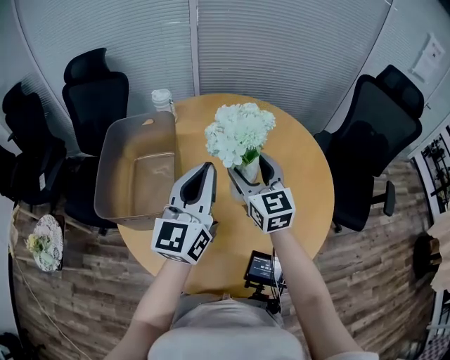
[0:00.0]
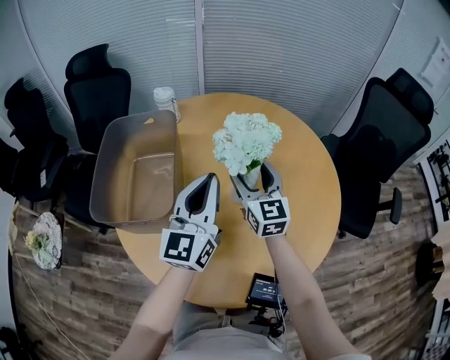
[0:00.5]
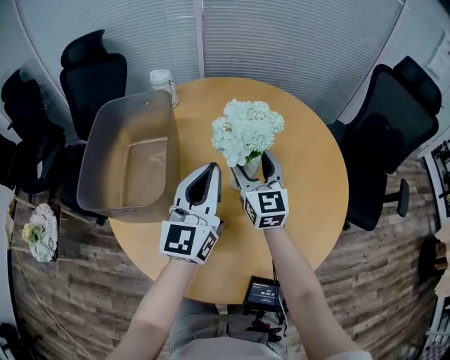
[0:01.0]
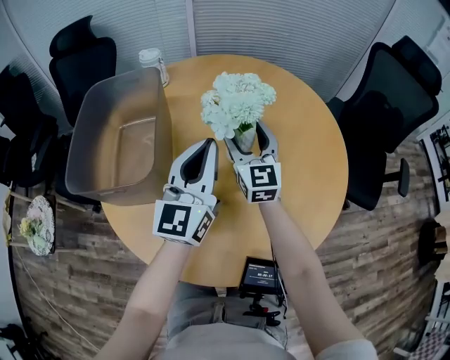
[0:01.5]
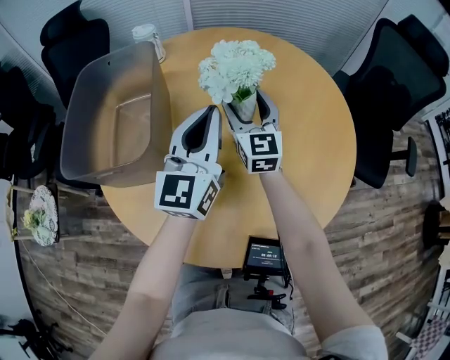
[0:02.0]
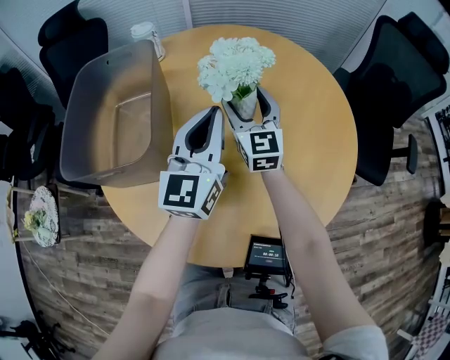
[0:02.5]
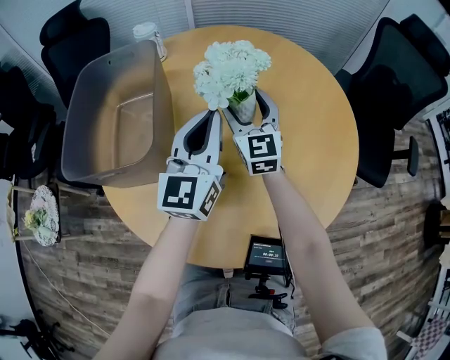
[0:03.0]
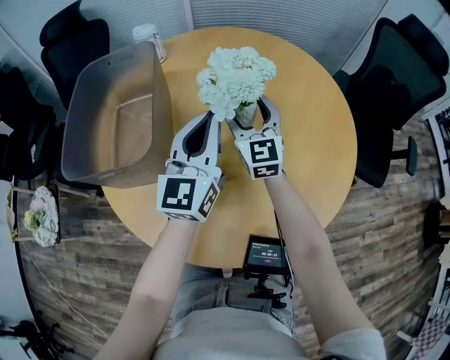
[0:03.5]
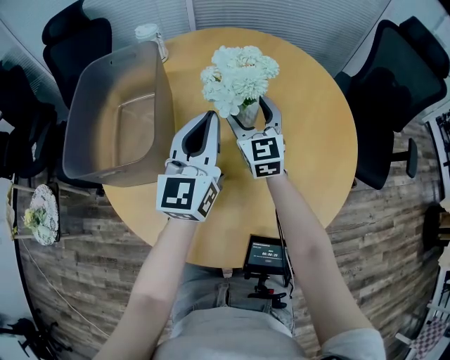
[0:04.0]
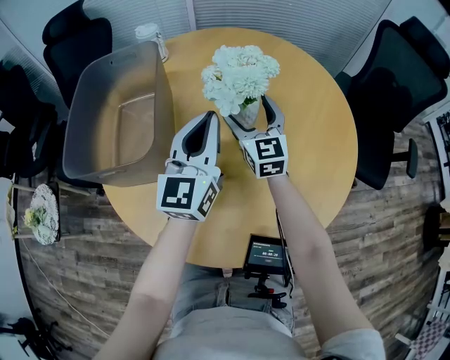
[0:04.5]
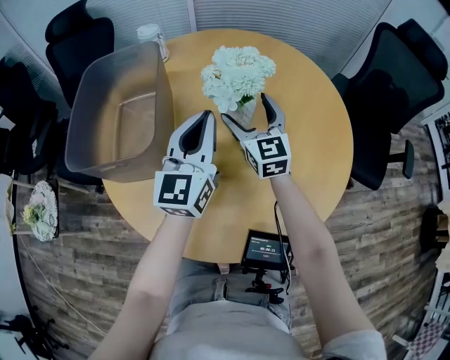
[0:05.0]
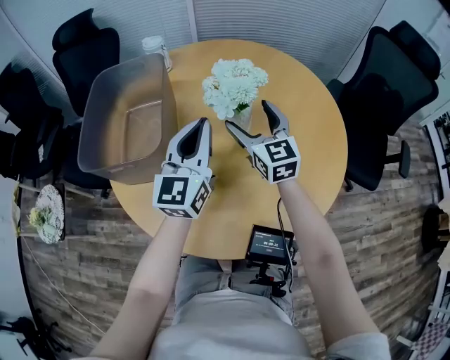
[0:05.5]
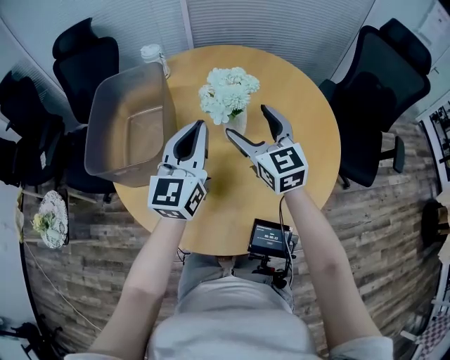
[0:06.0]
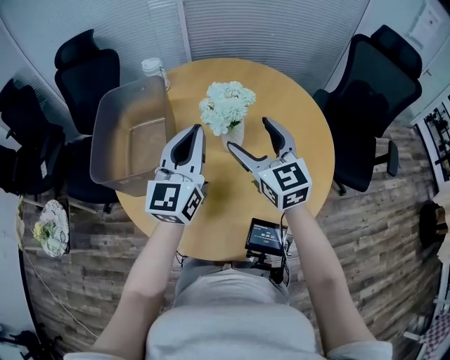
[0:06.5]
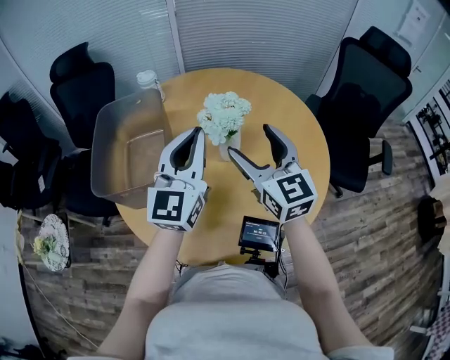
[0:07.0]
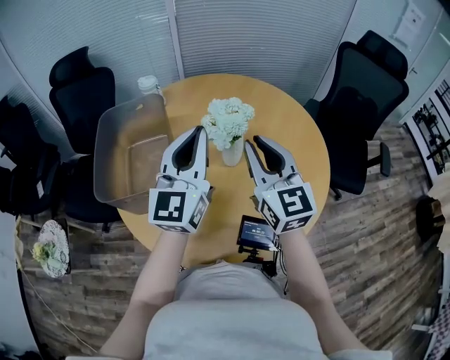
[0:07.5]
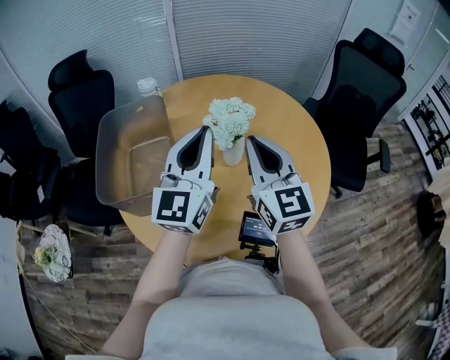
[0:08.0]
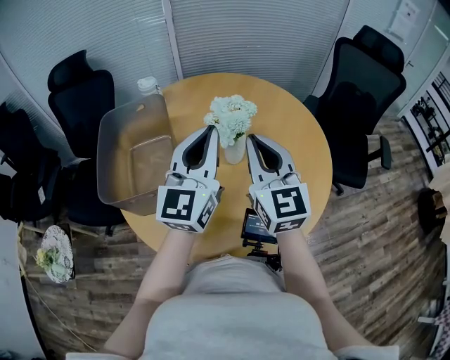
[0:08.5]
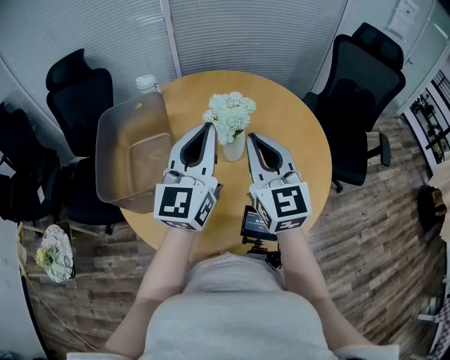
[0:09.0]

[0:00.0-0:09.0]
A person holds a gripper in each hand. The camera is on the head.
0:00.0 to 0:02.0: The right gripper heads downward and forward, covering roughly 10 cm. Meanwhile the left gripper heads downward, covering roughly 10 cm.
0:02.0 to 0:04.5: There are only small adjustments of the grippers.
0:04.5 to 0:07.0: The left gripper goes approximately 15 cm upward; the right gripper is displaced upward and backward by some 25 cm.
0:07.0 to 0:09.0: The right gripper closes up.

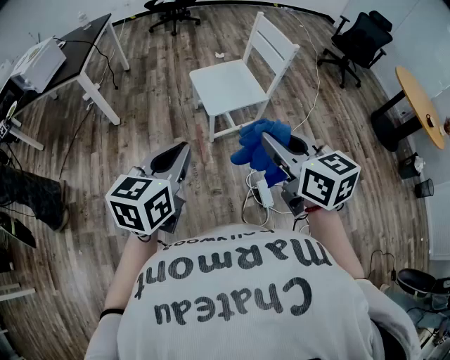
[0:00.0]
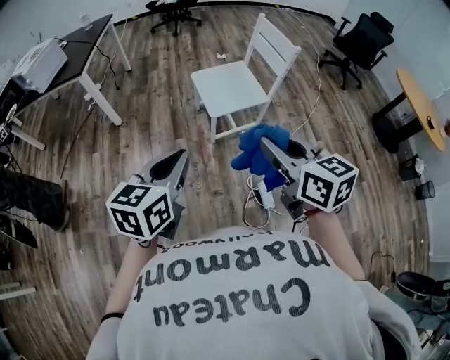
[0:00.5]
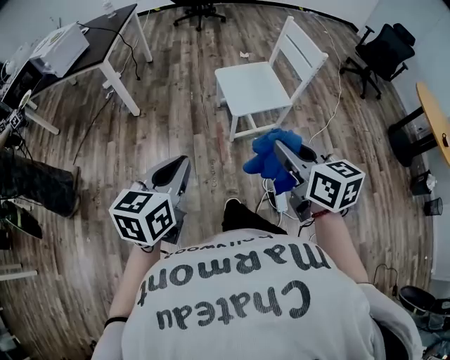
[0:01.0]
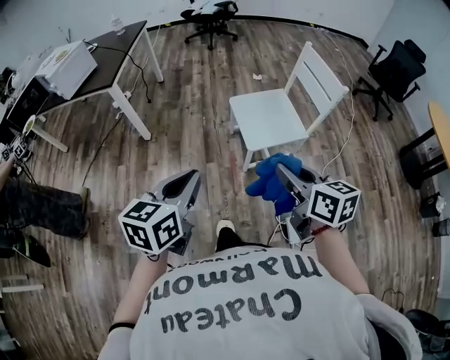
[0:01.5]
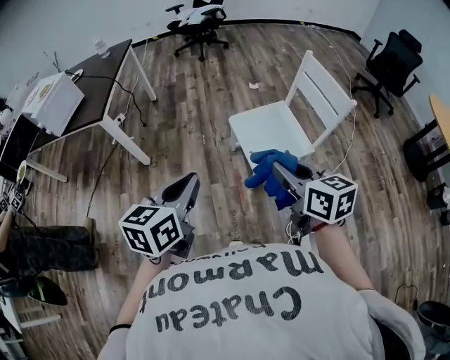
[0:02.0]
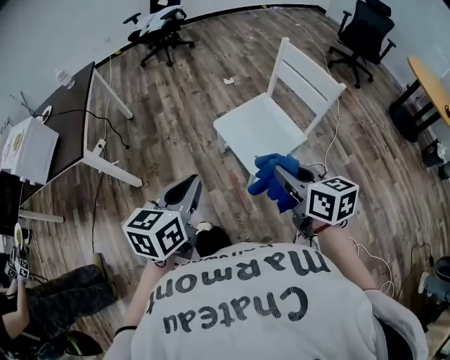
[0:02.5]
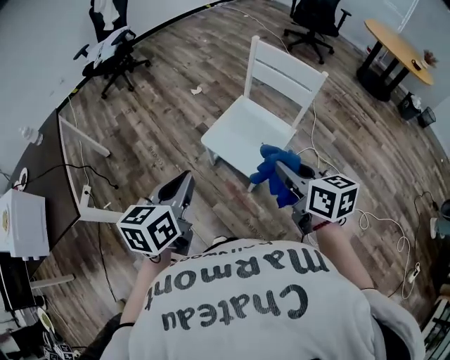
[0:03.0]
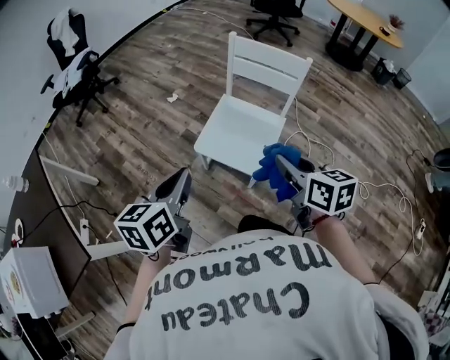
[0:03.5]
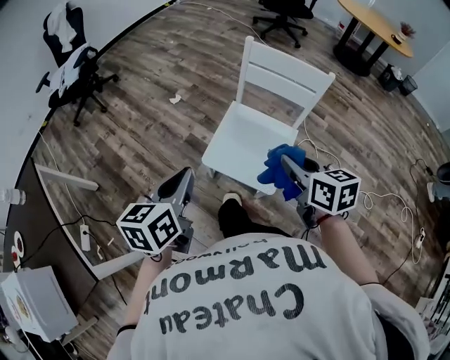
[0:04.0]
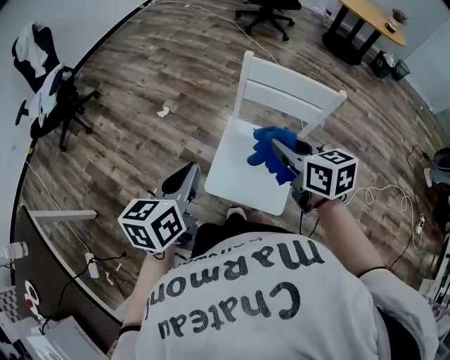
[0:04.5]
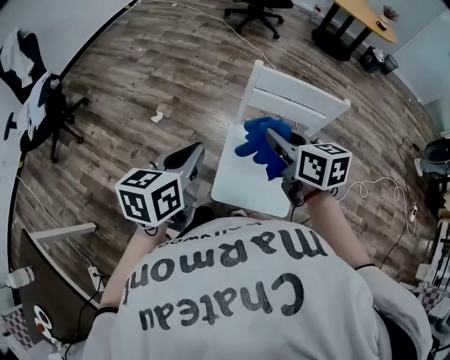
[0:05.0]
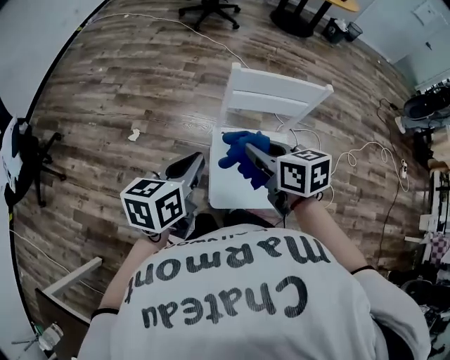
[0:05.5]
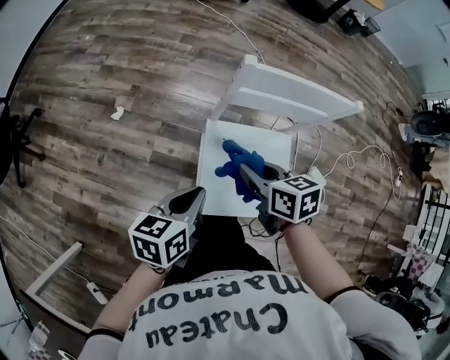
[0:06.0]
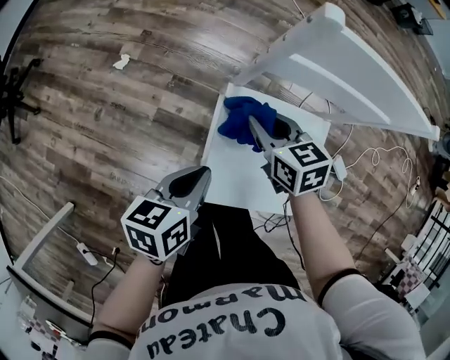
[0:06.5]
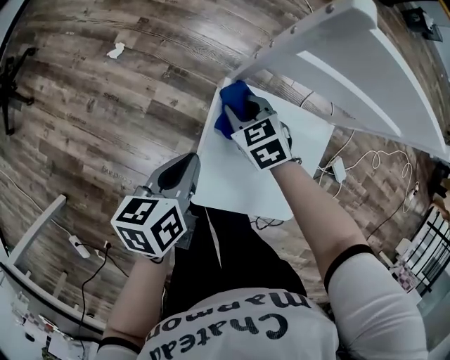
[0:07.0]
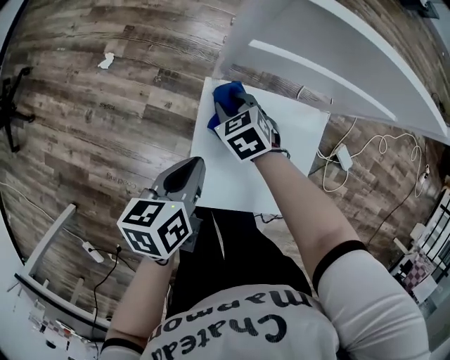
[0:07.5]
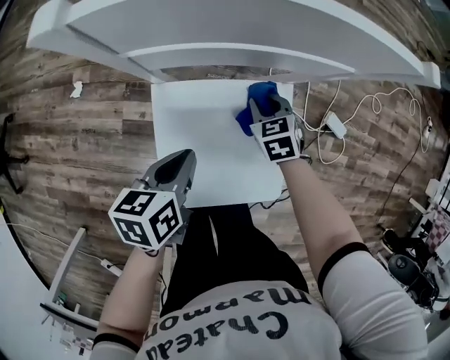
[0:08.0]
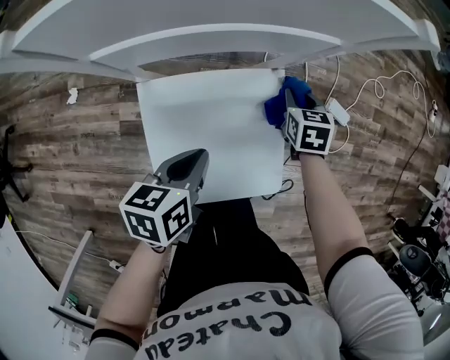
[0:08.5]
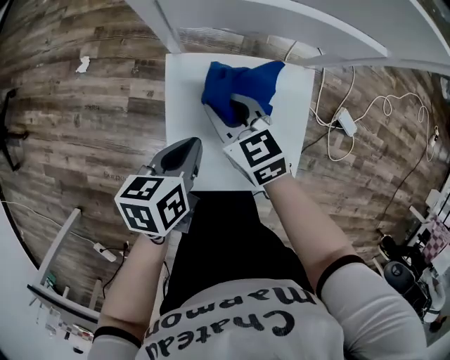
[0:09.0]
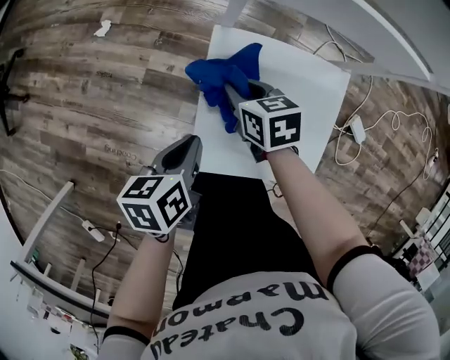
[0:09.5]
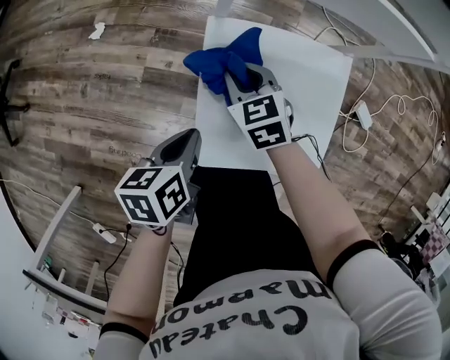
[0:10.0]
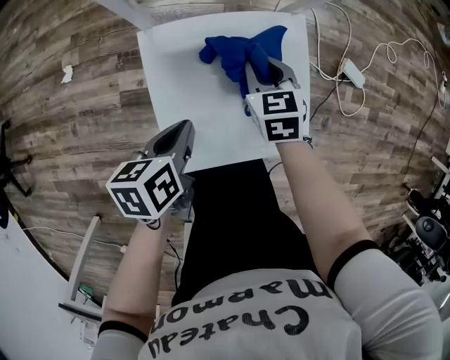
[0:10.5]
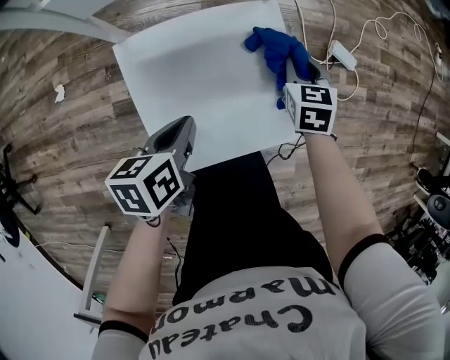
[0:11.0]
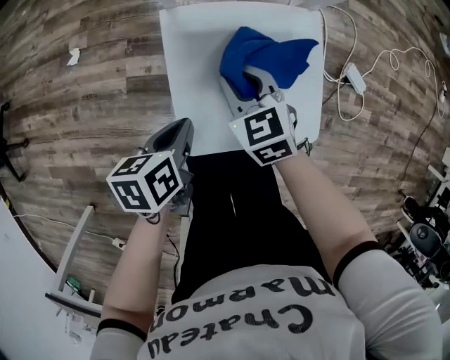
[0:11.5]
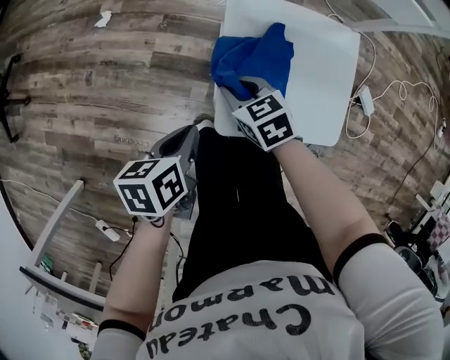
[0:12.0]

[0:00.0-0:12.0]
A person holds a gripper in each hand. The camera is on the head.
0:00.0 to 0:02.0: The left gripper heads forward and to the left, covering about 30 cm. Meanwhile the right gripper heads forward, covering roughly 25 cm.
0:02.0 to 0:04.0: The right gripper changes place by about 25 cm, and changes its angle by approximately 50 degrees; the left gripper ends up about 40 cm from where it was, and swivels about 40 degrees.
0:04.0 to 0:06.0: The right gripper shifts by approximately 30 cm, and swivels roughly 20 degrees; the left gripper shifts by roughly 30 cm, and changes its angle by approximately 40 degrees.
0:06.0 to 0:08.0: The right gripper is displaced downward by some 30 cm, and rotates roughly 30 degrees, while the left gripper heads downward, covering roughly 20 cm.
0:08.0 to 0:10.0: The right gripper shifts by some 20 cm. Meanwhile the left gripper moves about 15 cm.
0:10.0 to 0:12.0: The left gripper ends up approximately 10 cm from where it was.

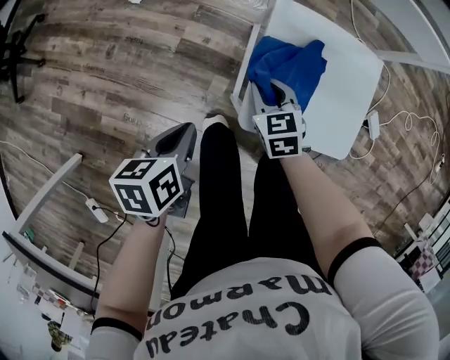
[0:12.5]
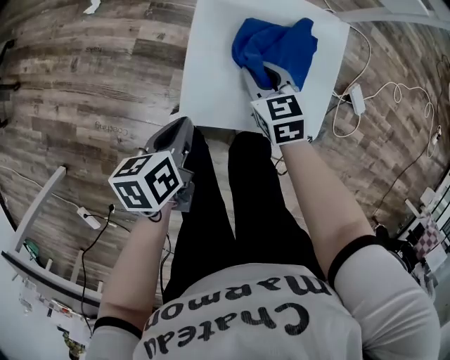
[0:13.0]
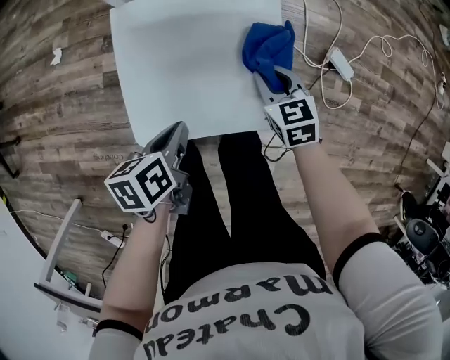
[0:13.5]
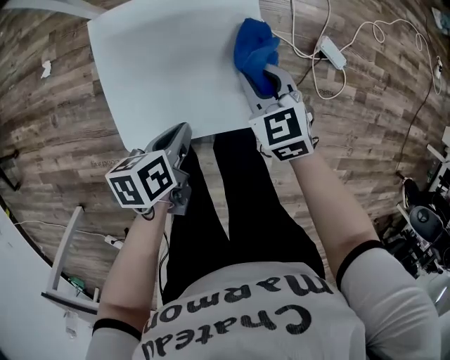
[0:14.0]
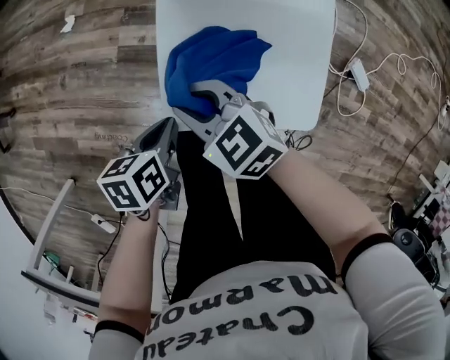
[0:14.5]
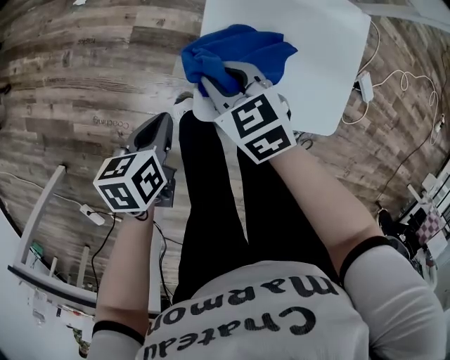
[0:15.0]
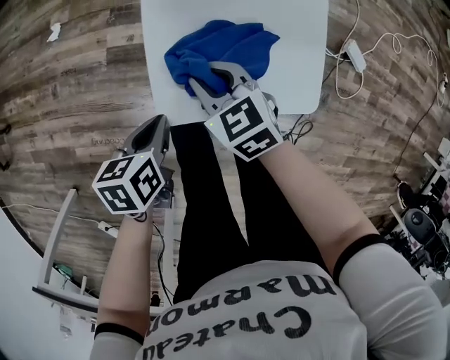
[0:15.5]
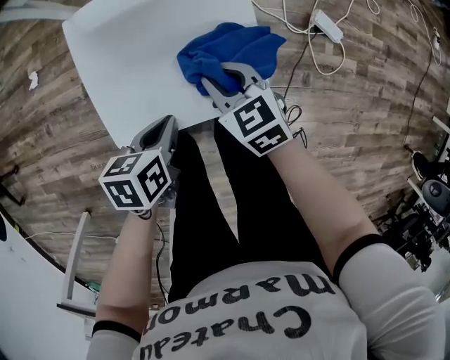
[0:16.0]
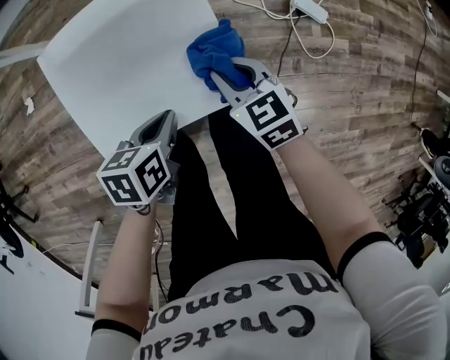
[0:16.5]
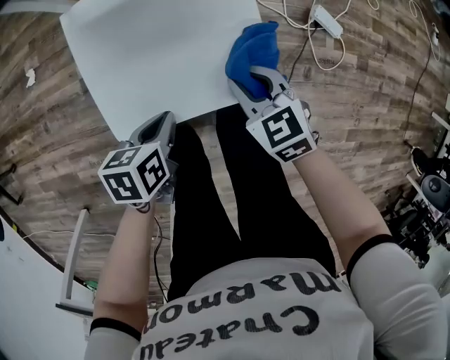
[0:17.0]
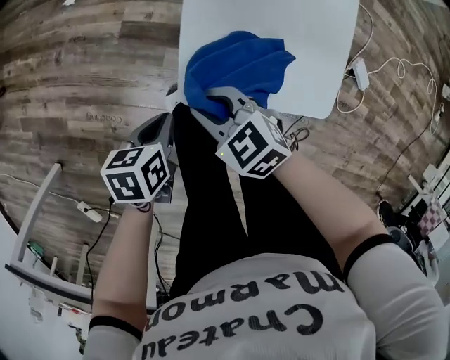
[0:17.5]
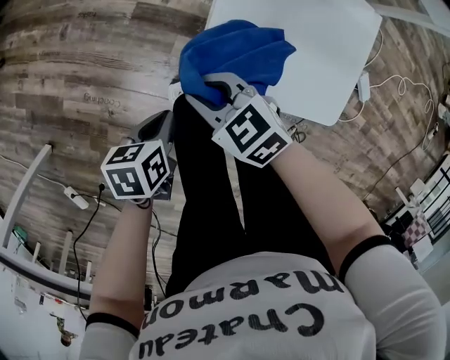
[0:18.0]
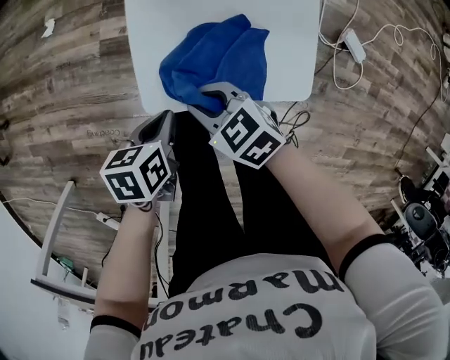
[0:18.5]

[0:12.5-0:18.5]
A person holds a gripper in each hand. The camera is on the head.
0:12.5 to 0:14.5: The right gripper travels upward by some 5 cm, and swivels roughly 30 degrees.
0:14.5 to 0:16.5: The left gripper shifts by about 20 cm, and changes its angle by about 30 degrees; the right gripper shifts by some 30 cm, and changes its angle by roughly 40 degrees.
0:16.5 to 0:18.5: The right gripper shifts by roughly 25 cm, and turns by about 30 degrees.
